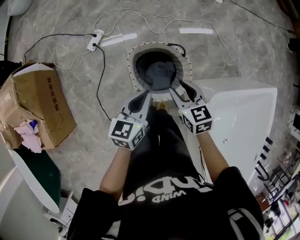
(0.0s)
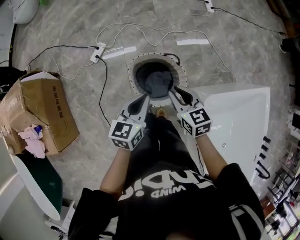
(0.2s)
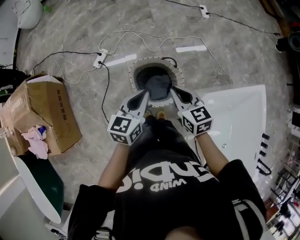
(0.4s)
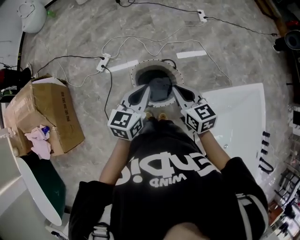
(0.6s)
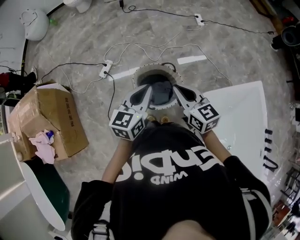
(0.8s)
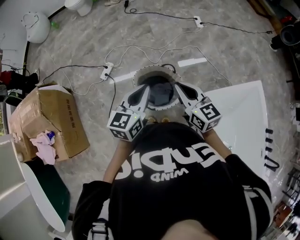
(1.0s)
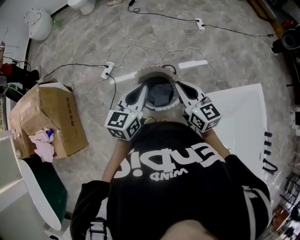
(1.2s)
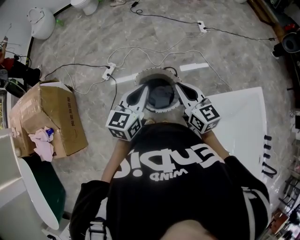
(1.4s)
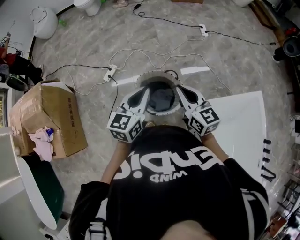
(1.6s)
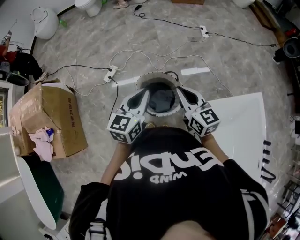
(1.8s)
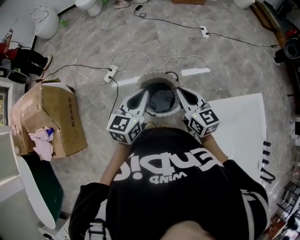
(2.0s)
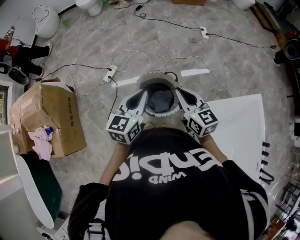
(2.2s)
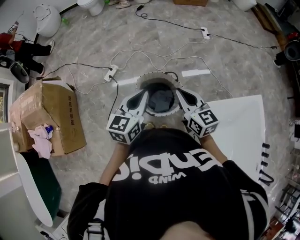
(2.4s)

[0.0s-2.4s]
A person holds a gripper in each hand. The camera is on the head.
0.0s to 1.2s: The two grippers go about 25 cm upward. The right gripper rotates approximately 30 degrees, and closes up.
1.2s to 2.4s: The two grippers keep their place.

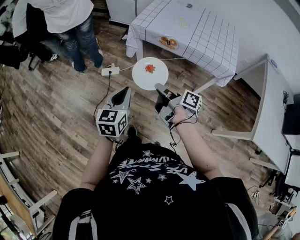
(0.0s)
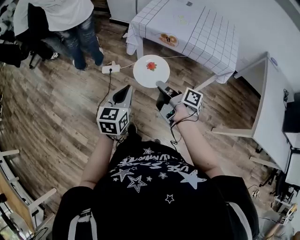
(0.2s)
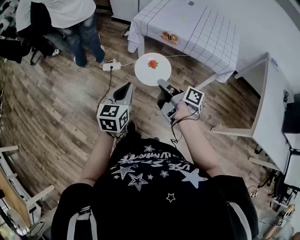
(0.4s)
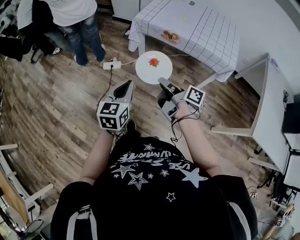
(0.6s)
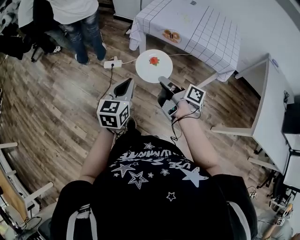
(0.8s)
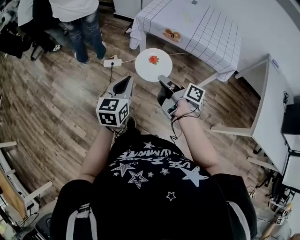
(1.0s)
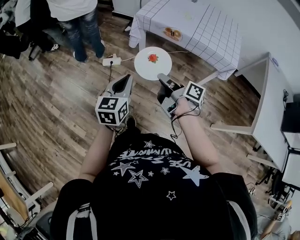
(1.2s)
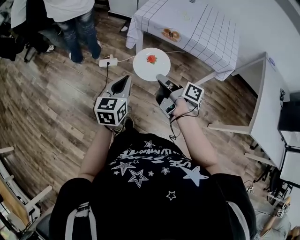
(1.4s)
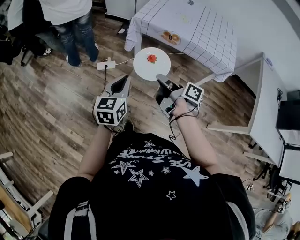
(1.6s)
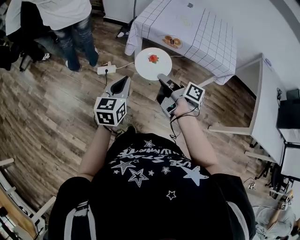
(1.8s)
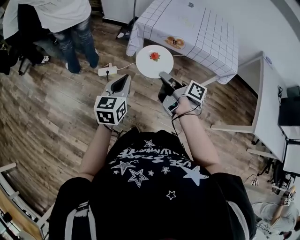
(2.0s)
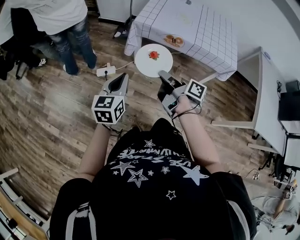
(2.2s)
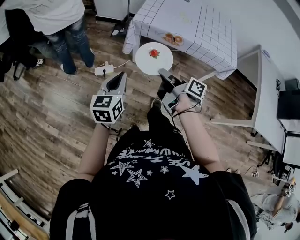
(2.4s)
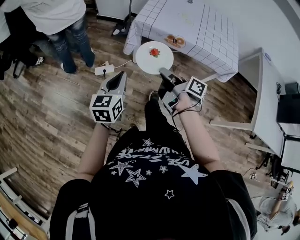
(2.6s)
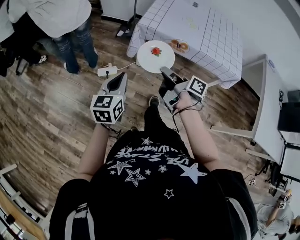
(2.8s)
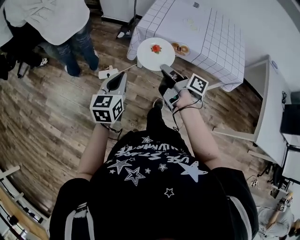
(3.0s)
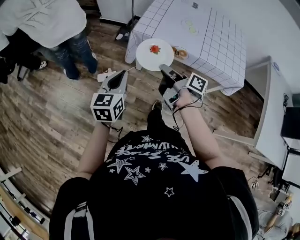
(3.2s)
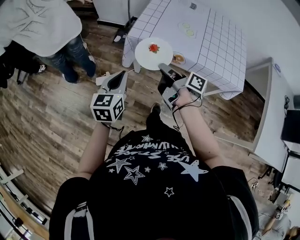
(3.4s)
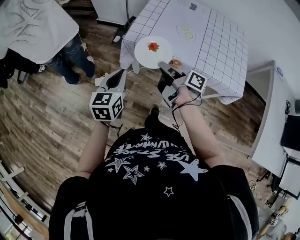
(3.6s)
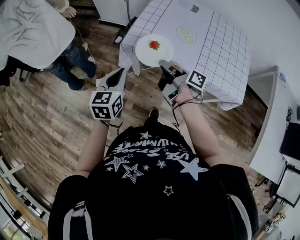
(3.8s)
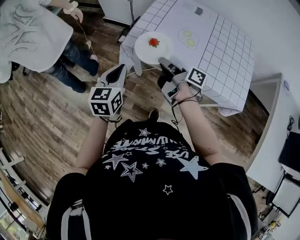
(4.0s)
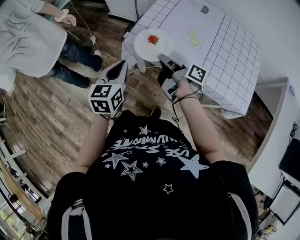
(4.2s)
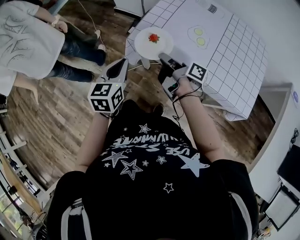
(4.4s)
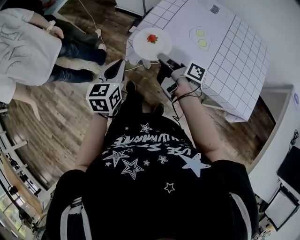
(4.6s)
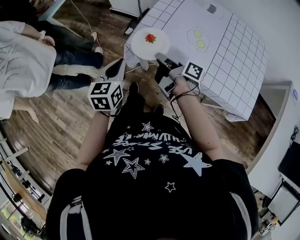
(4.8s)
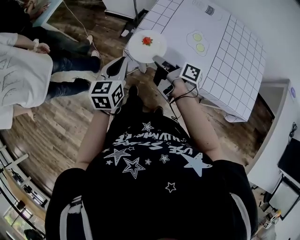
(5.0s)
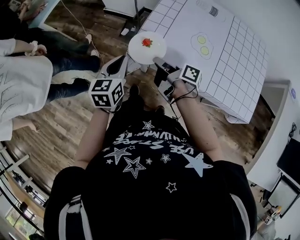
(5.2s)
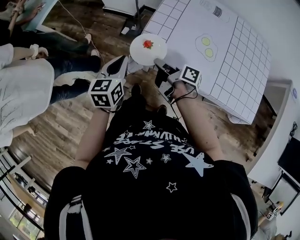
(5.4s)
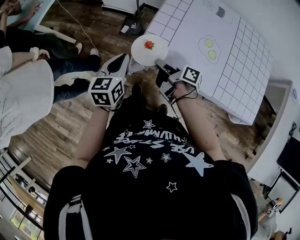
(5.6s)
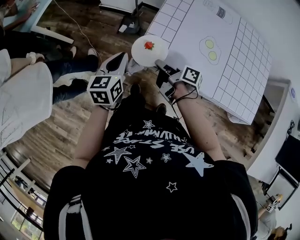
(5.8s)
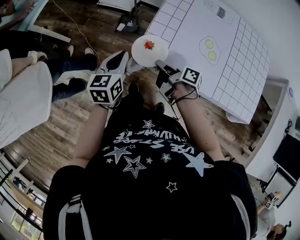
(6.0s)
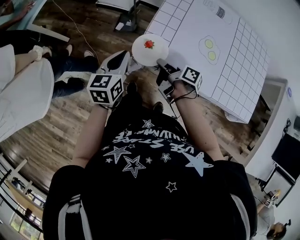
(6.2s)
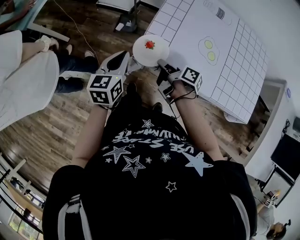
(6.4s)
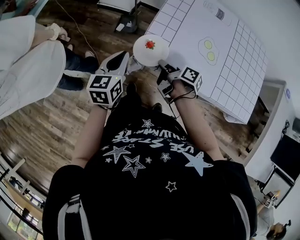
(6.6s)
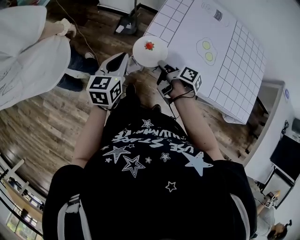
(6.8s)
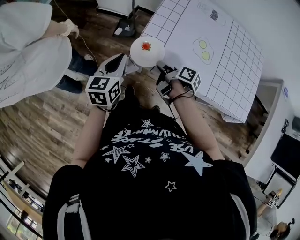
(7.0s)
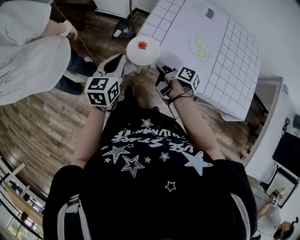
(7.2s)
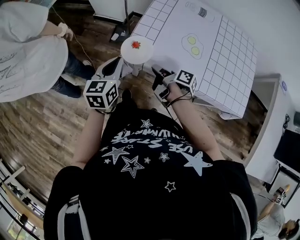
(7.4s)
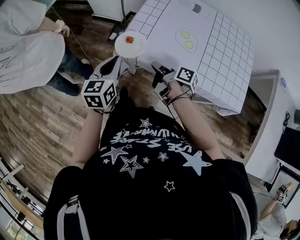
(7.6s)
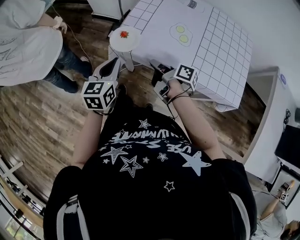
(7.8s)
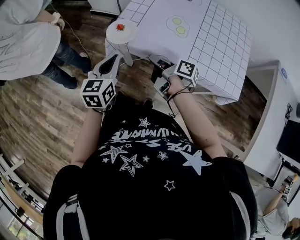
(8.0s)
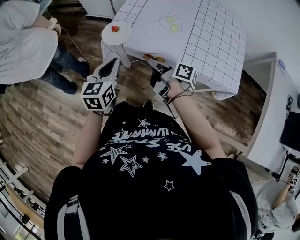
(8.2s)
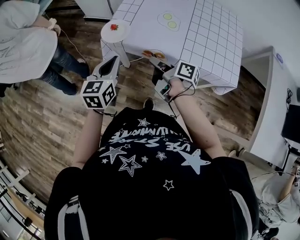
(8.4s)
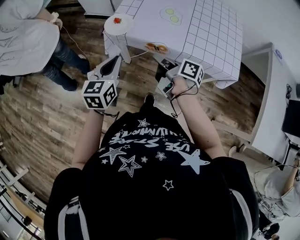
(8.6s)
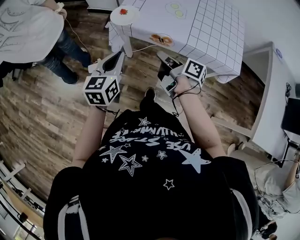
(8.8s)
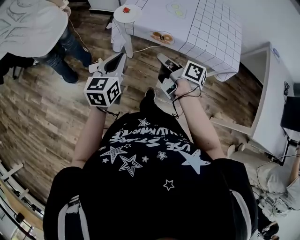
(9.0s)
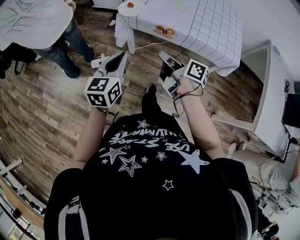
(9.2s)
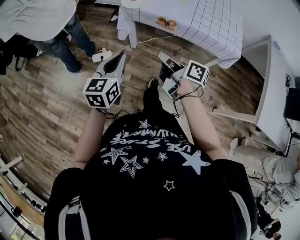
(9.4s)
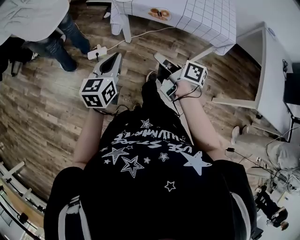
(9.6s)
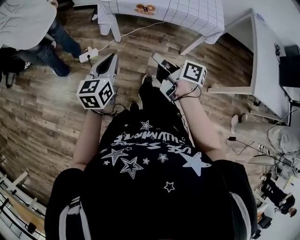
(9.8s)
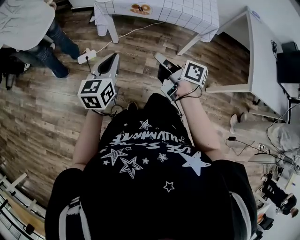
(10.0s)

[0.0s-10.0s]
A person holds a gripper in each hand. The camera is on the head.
1.4s to 2.8s: The left gripper moves roughly 15 cm.
2.8s to 4.2s: The left gripper ends up approximately 20 cm from where it was.
4.2s to 5.8s: The left gripper shifts by some 20 cm.
7.2s to 8.6s: The left gripper shifts by approximately 20 cm.
8.6s to 10.0s: The left gripper ends up approximately 25 cm from where it was.

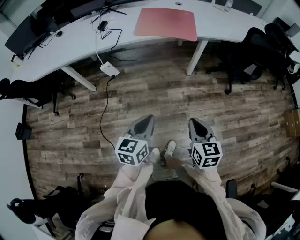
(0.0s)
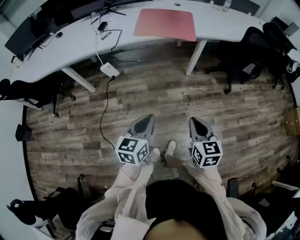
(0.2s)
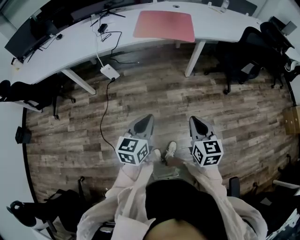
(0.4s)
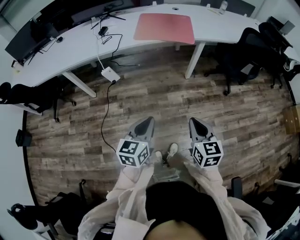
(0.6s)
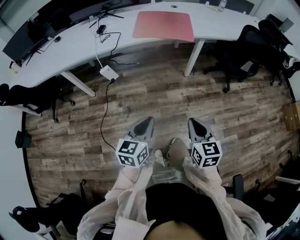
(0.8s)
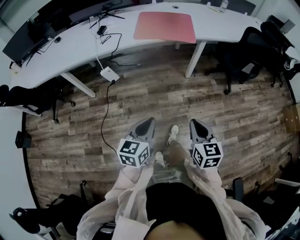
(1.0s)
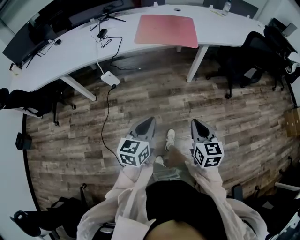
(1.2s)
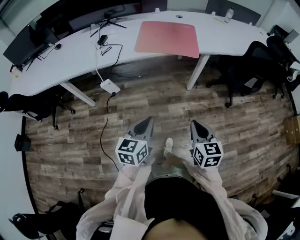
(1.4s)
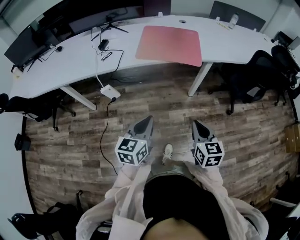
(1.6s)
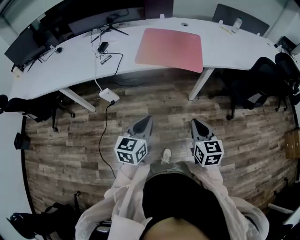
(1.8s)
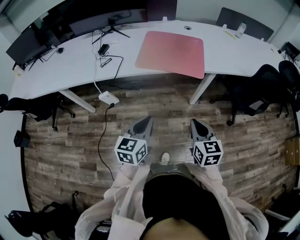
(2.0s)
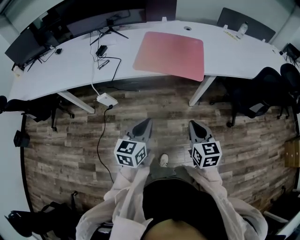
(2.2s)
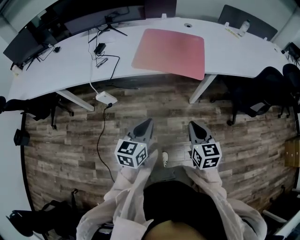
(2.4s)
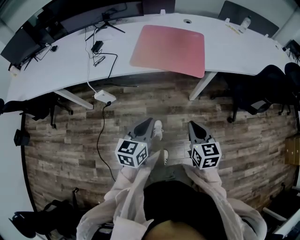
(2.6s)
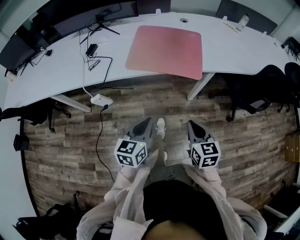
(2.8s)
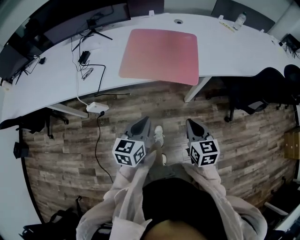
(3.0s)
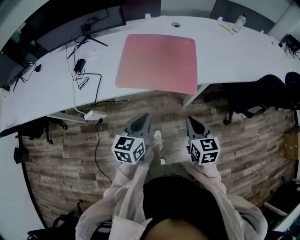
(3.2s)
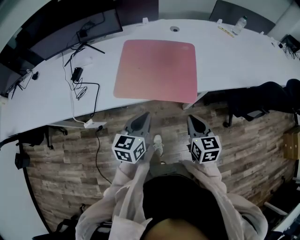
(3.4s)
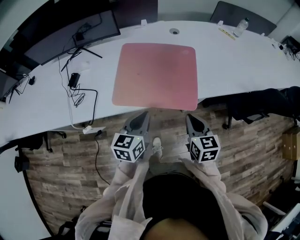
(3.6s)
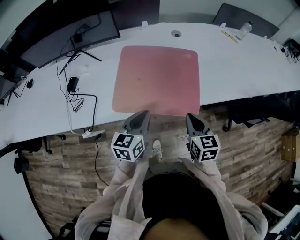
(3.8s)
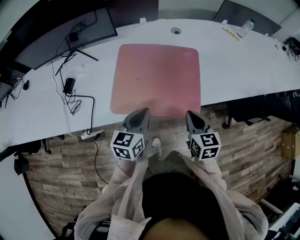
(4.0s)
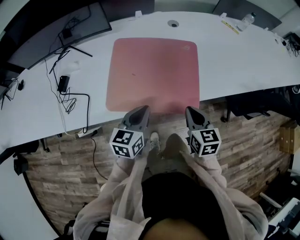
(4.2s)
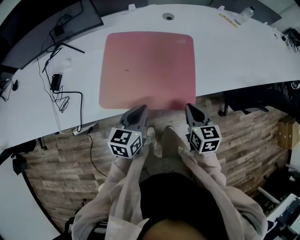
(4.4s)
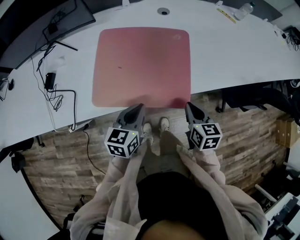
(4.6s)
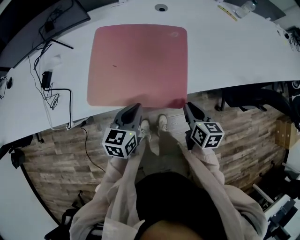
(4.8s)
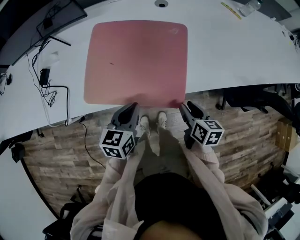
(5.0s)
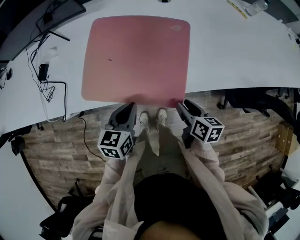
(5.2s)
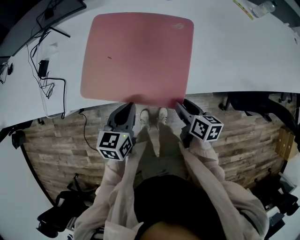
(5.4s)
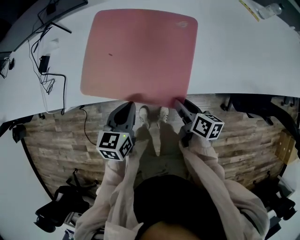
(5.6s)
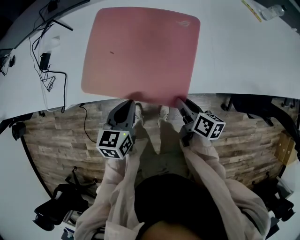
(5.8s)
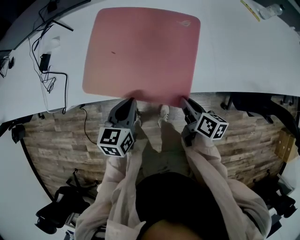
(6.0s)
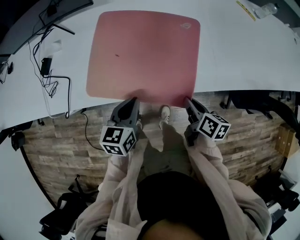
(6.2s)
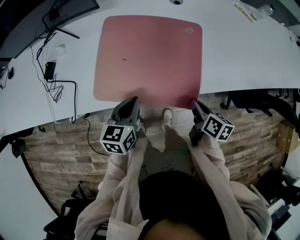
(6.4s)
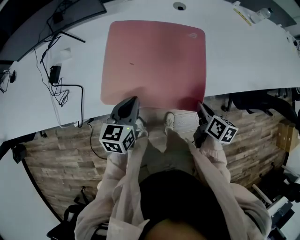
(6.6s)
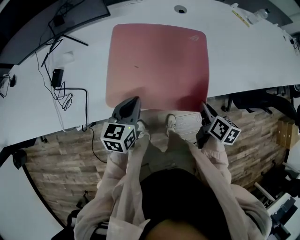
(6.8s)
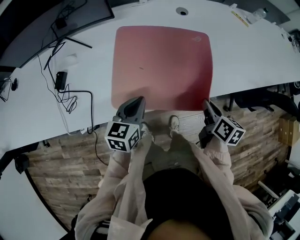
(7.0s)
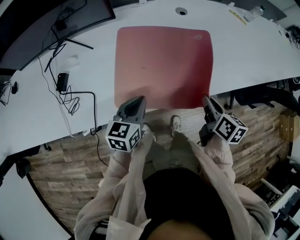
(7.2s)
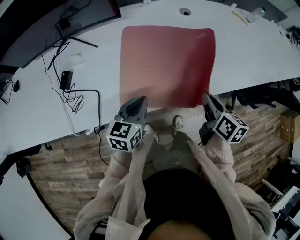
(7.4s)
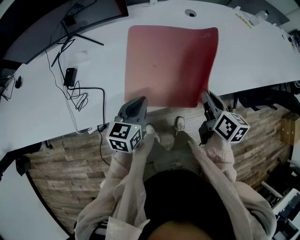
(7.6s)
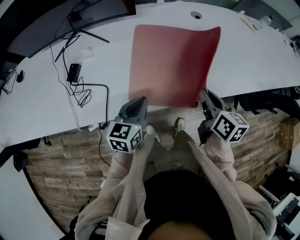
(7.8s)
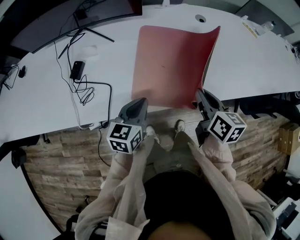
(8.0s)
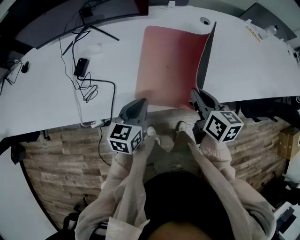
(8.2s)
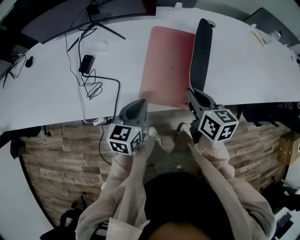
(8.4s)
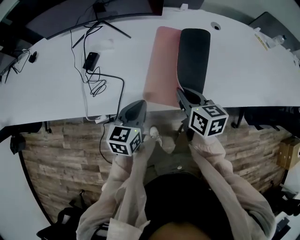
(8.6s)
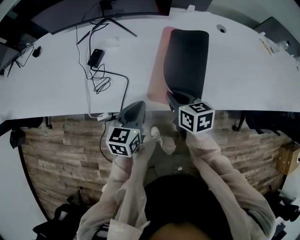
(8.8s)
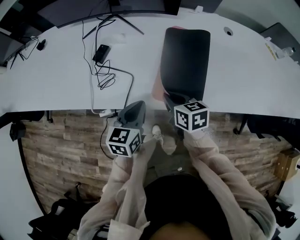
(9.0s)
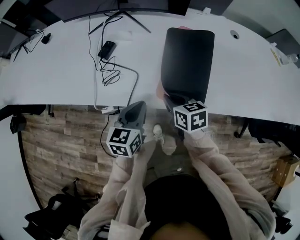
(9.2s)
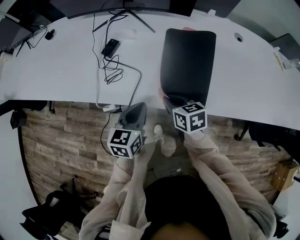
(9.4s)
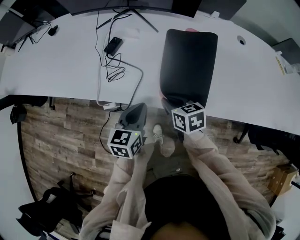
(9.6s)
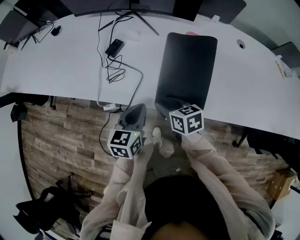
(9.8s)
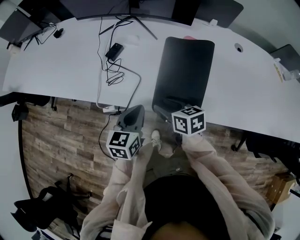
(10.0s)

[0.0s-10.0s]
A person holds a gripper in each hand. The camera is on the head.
0.0s to 1.4s: Both grippers move forward, approximately 10 cm.
1.4s to 2.8s: The grippers both shift forward by some 20 cm.
2.8s to 4.2s: Both grippers travel together forward, approximately 30 cm.
4.2s to 5.8s: The right gripper shifts approximately 15 cm downward and to the right, twists roughly 40 degrees clockwise, seen from behind, and opens. Meanwhile the left gripper moves downward and to the right, approximately 10 cm.
5.8s to 7.2s: The right gripper shifts roughly 15 cm upward and to the left, and rotates roughly 30 degrees. Meanwhile the left gripper goes roughly 10 cm to the left.
7.2s to 8.6s: The right gripper moves to the left, roughly 25 cm, and changes its angle by about 30 degrees, while the left gripper is displaced to the left and backward by about 15 cm.
8.6s to 10.0s: The left gripper goes approximately 5 cm to the left. The right gripper travels to the left and downward by some 15 cm, swivels some 30 degrees, and opens.

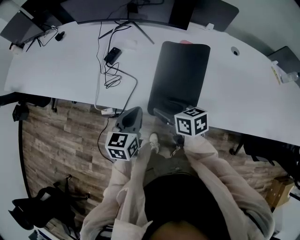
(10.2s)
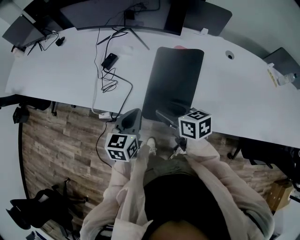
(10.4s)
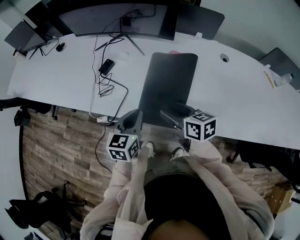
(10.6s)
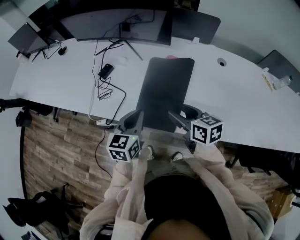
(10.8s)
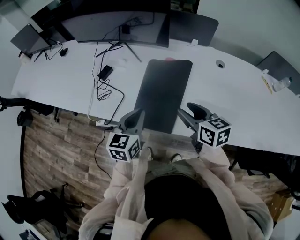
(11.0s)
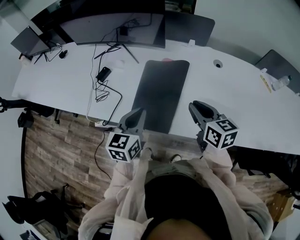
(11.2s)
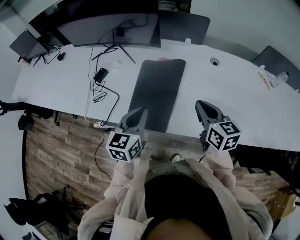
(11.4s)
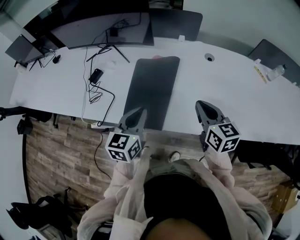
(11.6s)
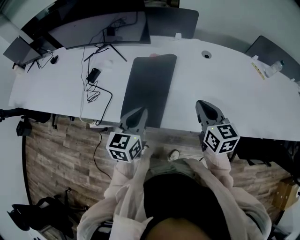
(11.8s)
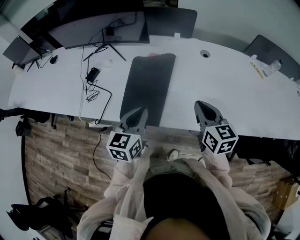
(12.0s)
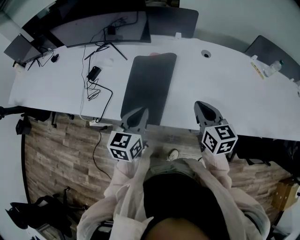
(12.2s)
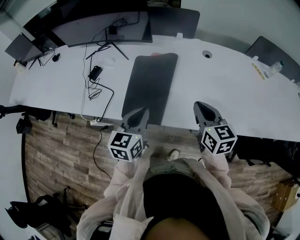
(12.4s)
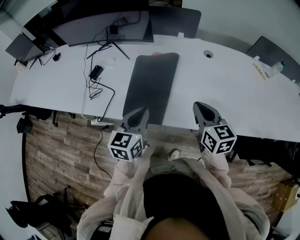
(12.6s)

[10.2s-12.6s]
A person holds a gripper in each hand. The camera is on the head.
10.2s to 11.4s: The left gripper shifts some 15 cm to the right and upward; the right gripper travels to the right and upward by roughly 30 cm, turns by roughly 30 degrees, and closes up.
11.4s to 12.6s: The grippers move only a little.
